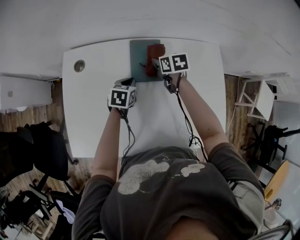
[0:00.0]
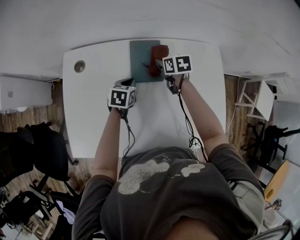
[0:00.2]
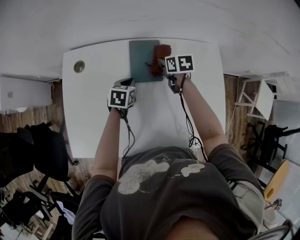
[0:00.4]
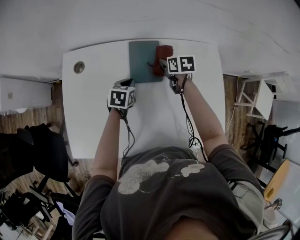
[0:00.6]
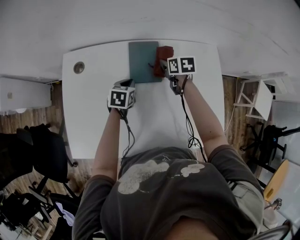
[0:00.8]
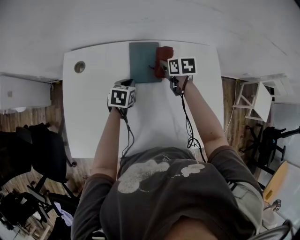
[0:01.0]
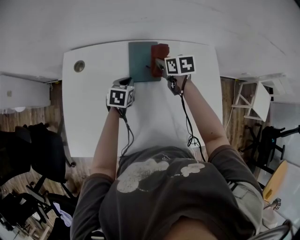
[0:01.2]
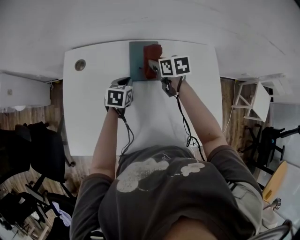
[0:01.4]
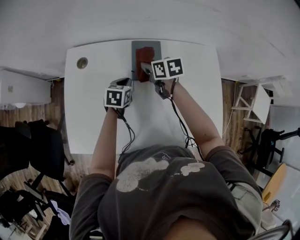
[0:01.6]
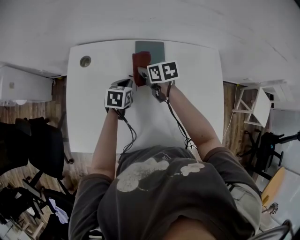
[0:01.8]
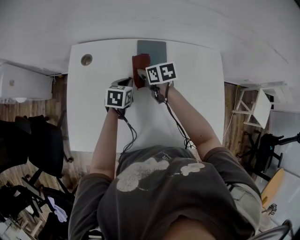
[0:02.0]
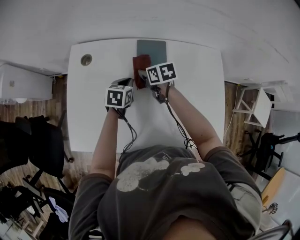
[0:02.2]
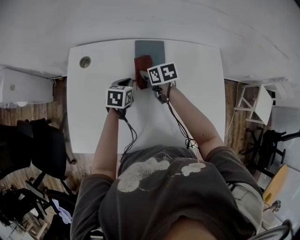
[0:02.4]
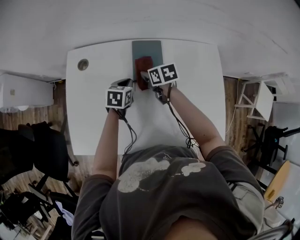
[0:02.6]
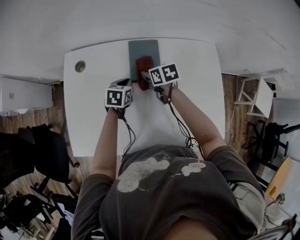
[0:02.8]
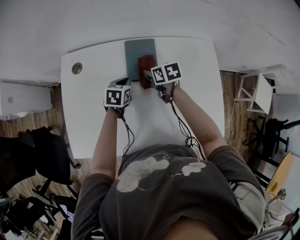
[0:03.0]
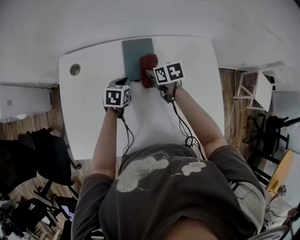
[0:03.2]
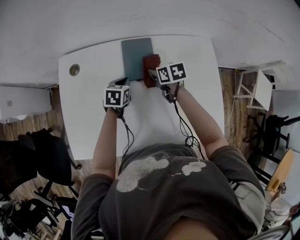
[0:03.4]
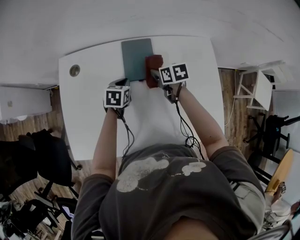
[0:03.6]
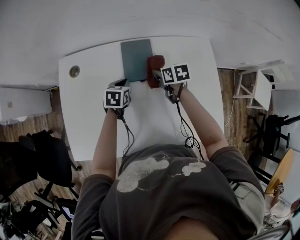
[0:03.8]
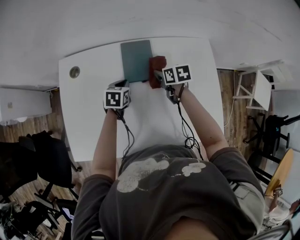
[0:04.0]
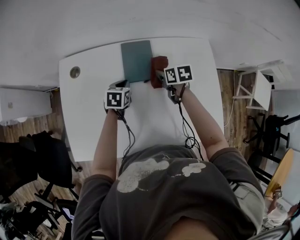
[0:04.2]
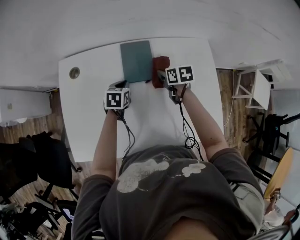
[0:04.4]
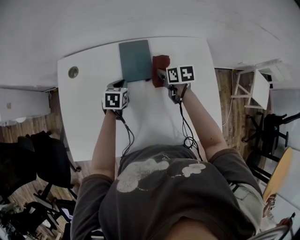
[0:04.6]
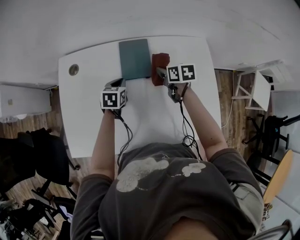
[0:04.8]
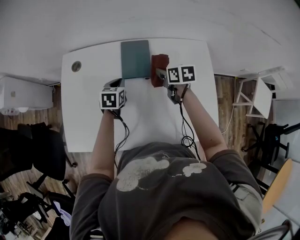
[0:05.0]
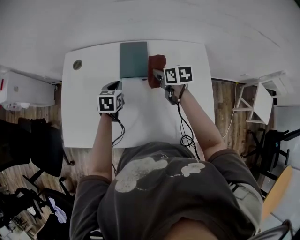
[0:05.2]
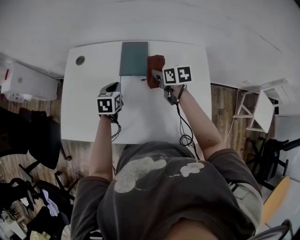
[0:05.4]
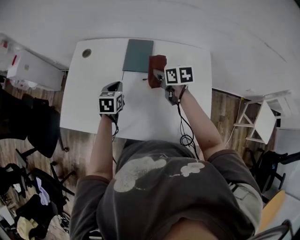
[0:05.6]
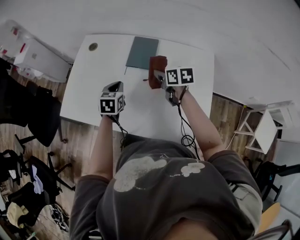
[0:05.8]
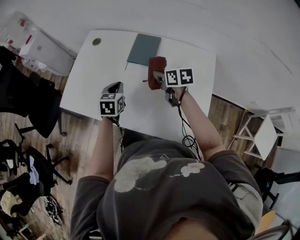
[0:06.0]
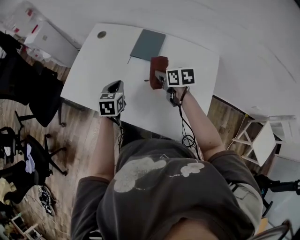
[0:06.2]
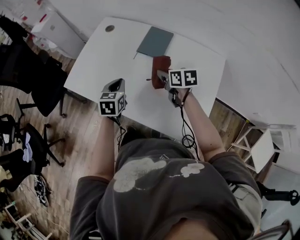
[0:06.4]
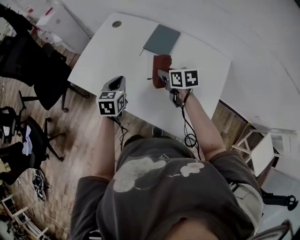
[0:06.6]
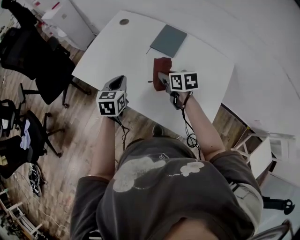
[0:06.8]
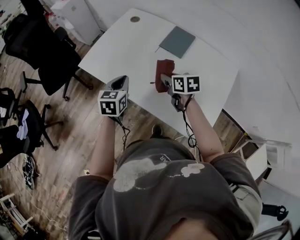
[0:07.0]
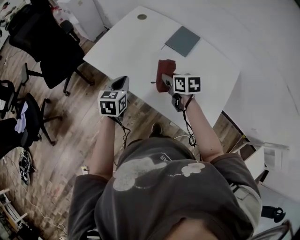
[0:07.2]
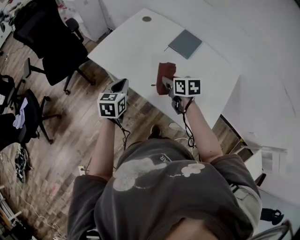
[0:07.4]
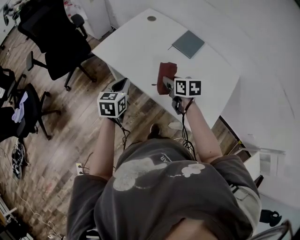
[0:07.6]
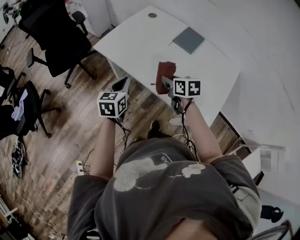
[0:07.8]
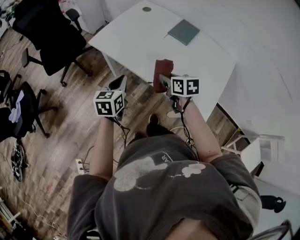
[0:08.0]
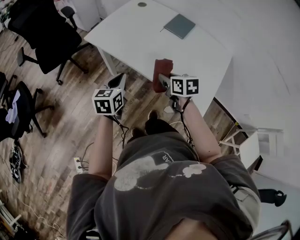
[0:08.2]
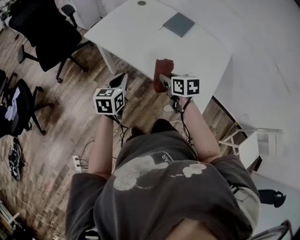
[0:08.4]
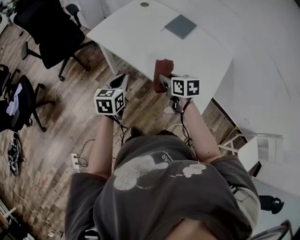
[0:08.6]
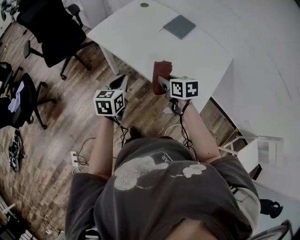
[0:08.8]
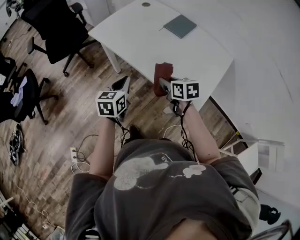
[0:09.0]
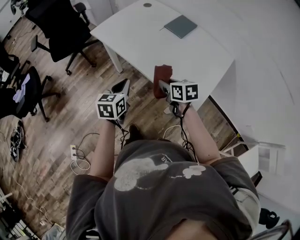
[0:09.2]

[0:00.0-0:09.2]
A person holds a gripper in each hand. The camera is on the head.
0:00.0 to 0:01.6: The right gripper heads to the left and upward, covering about 10 cm.
0:01.6 to 0:03.0: The right gripper travels downward by some 5 cm.
0:03.0 to 0:04.6: The right gripper heads to the right, covering approximately 10 cm.
0:04.6 to 0:06.2: The left gripper shifts by approximately 25 cm, and rotates approximately 30 degrees; the right gripper changes place by roughly 15 cm, and changes its angle by about 30 degrees.
0:06.2 to 0:07.6: Both grippers travel together to the left and backward, about 25 cm.
0:07.6 to 0:09.2: Both grippers travel together backward, some 15 cm.

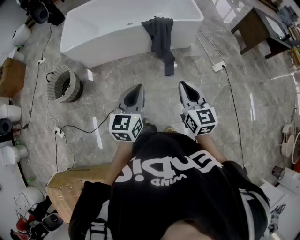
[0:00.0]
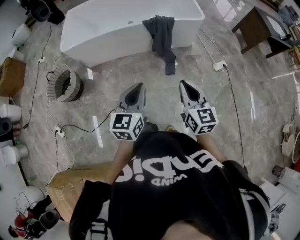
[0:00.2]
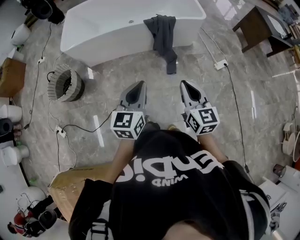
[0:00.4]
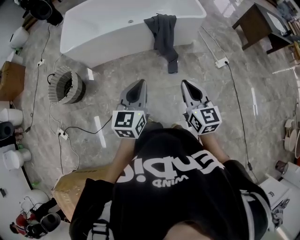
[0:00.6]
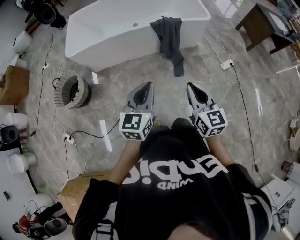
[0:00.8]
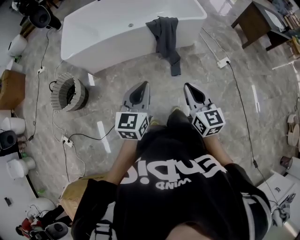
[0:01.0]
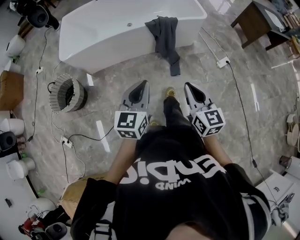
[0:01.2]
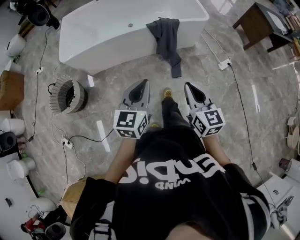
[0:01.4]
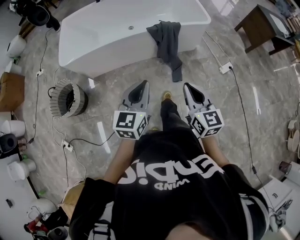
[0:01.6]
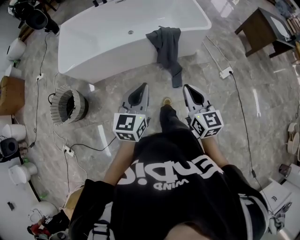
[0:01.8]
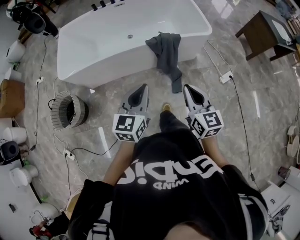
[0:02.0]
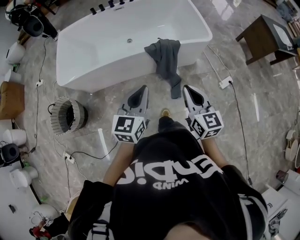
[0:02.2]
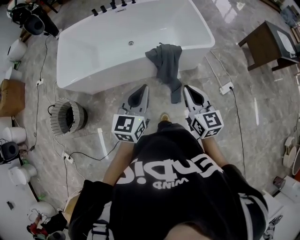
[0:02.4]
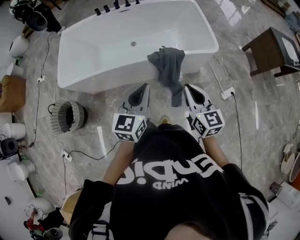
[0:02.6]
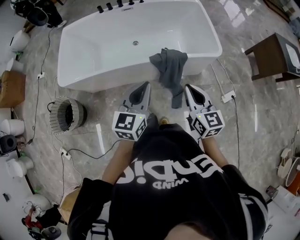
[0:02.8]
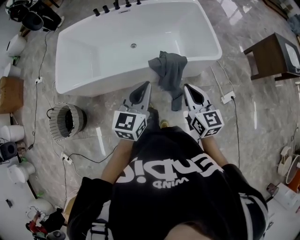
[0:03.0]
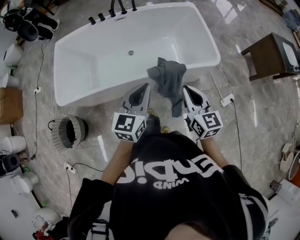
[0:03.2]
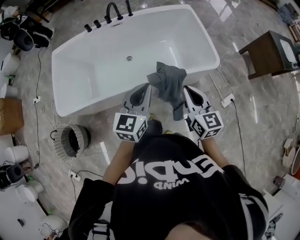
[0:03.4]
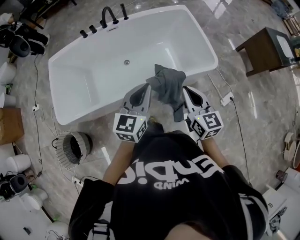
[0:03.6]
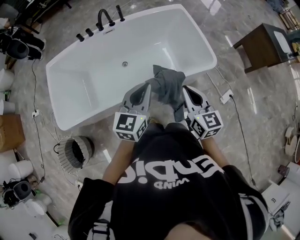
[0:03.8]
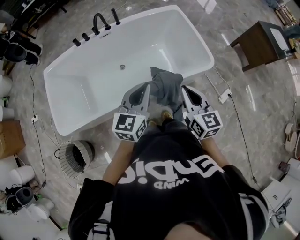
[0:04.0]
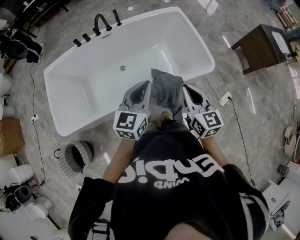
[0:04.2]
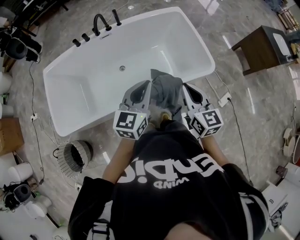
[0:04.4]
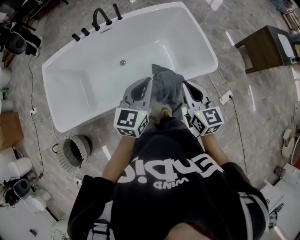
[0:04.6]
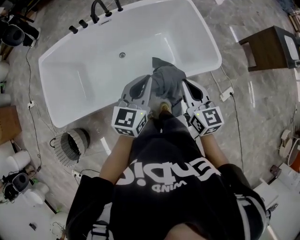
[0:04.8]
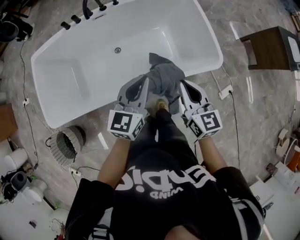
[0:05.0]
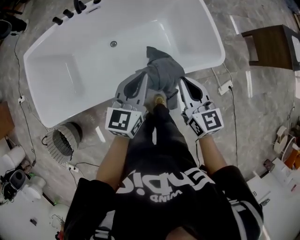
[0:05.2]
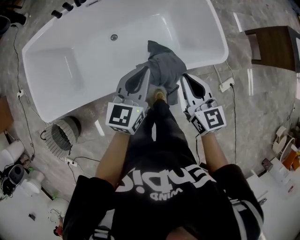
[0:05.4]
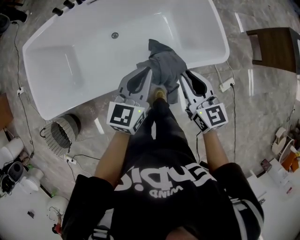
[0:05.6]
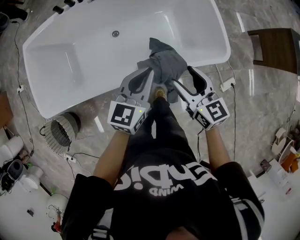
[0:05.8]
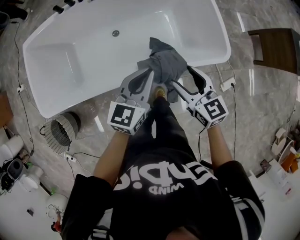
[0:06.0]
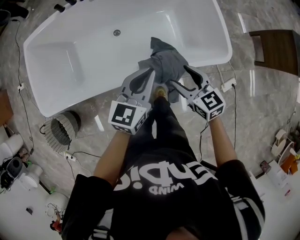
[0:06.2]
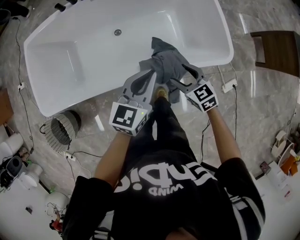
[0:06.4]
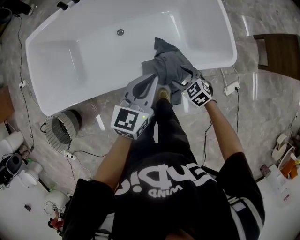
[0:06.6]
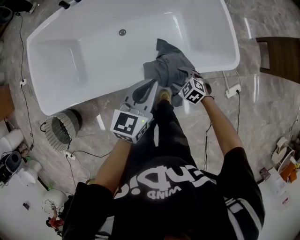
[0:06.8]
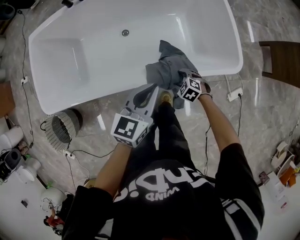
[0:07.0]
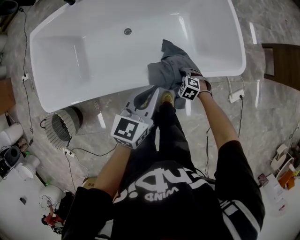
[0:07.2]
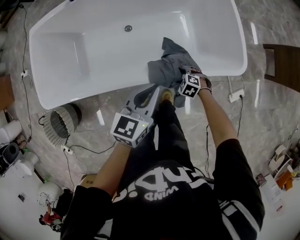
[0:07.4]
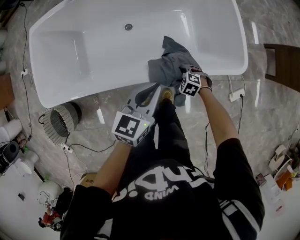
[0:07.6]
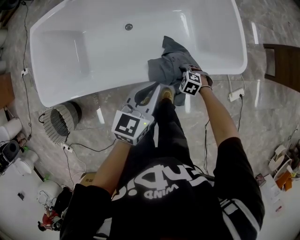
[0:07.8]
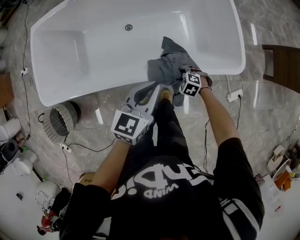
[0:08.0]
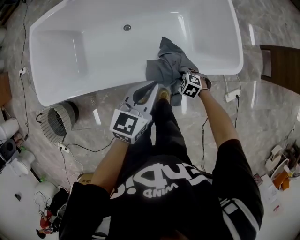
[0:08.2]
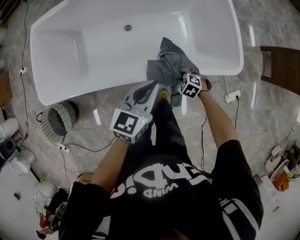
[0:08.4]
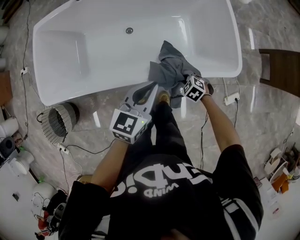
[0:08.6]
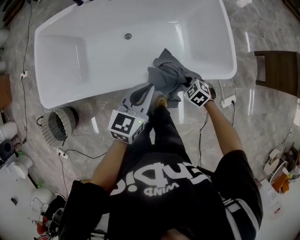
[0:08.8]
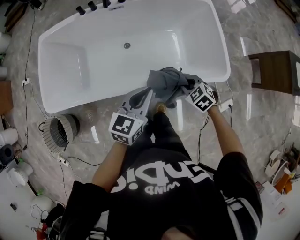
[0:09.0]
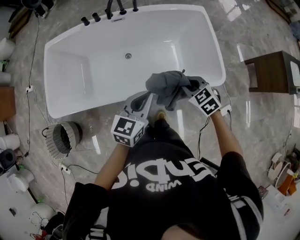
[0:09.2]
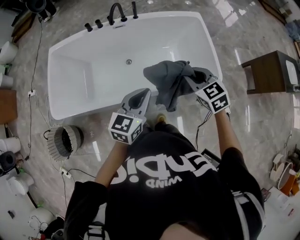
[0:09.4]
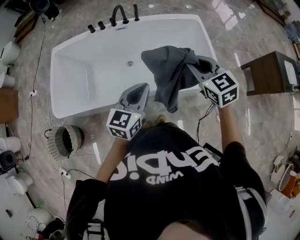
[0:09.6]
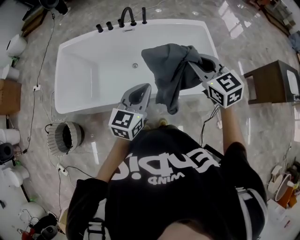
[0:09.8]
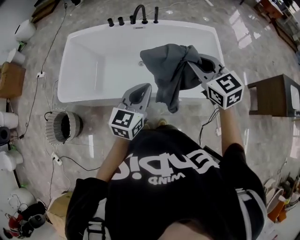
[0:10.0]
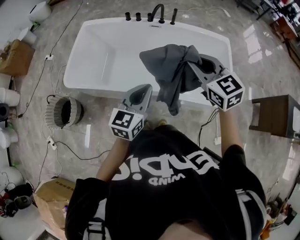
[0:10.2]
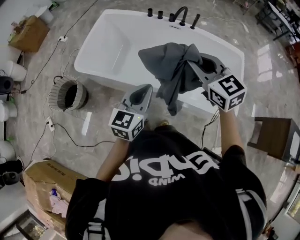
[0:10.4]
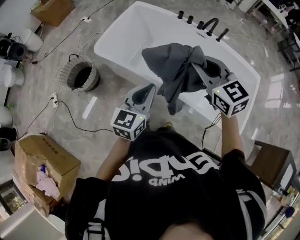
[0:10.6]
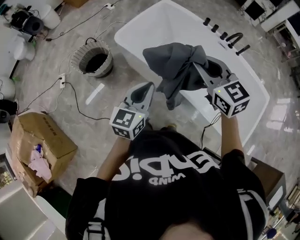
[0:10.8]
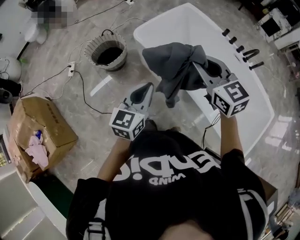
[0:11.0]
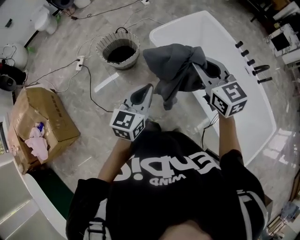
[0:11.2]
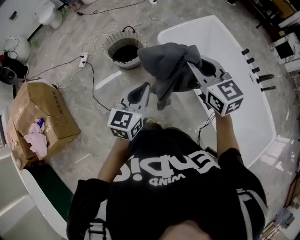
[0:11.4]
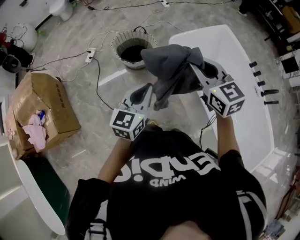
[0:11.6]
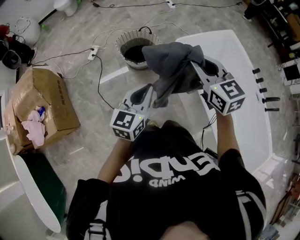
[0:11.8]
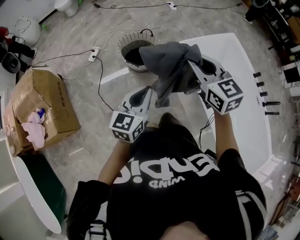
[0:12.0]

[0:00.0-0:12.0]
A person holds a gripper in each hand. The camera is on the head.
0:00.0 to 0:01.6: The grippers both shift forward and to the left by approximately 15 cm.
0:01.6 to 0:03.0: The grippers both shift forward by approximately 35 cm.
0:03.0 to 0:04.4: The grippers both shift forward by about 20 cm.
0:04.4 to 0:06.0: The two grippers go about 15 cm downward and forward. The right gripper changes its angle by roughly 20 degrees, and opens.
0:06.0 to 0:07.6: The right gripper heads downward, covering about 35 cm, and tips its fingers downward by approximately 50 degrees, while the left gripper travels downward by approximately 5 cm.
0:07.6 to 0:09.0: The right gripper is displaced upward by roughly 20 cm, rotates approximately 20 degrees, and closes; the left gripper moves upward, approximately 10 cm.
0:09.0 to 0:10.4: The right gripper goes roughly 35 cm upward, and tips its fingers upward by about 40 degrees; the left gripper shifts by some 20 cm, and changes its angle by about 30 degrees.
0:10.4 to 0:12.0: The pair of grippers is taken about 50 cm. The right gripper changes its angle by approximately 40 degrees; the left gripper rotates some 50 degrees.

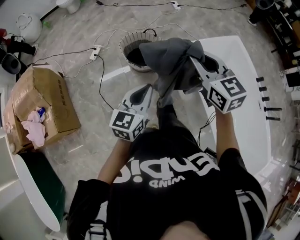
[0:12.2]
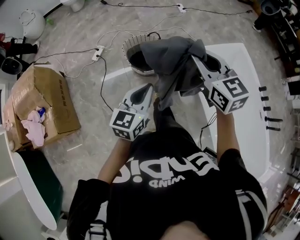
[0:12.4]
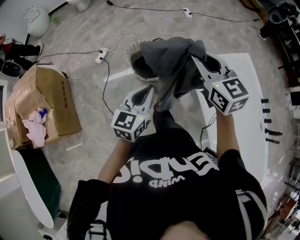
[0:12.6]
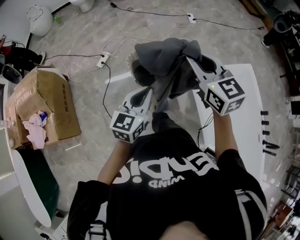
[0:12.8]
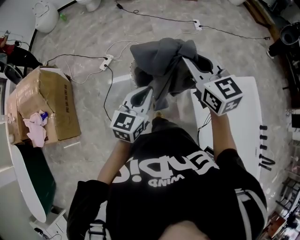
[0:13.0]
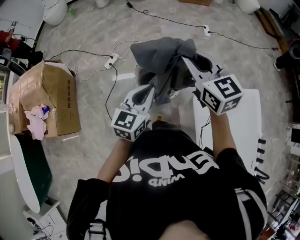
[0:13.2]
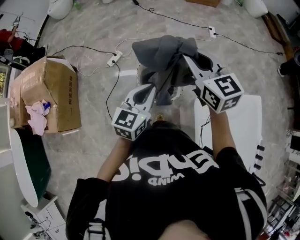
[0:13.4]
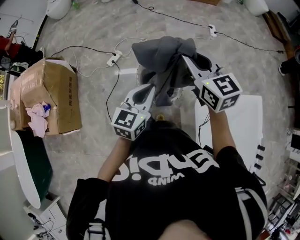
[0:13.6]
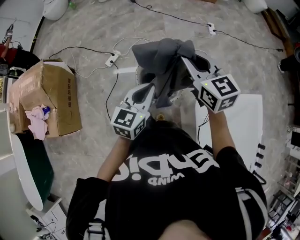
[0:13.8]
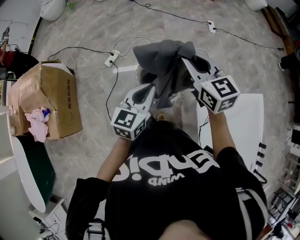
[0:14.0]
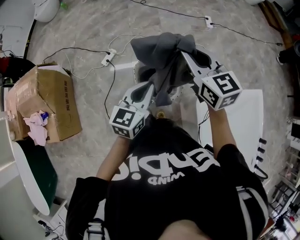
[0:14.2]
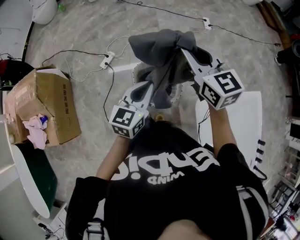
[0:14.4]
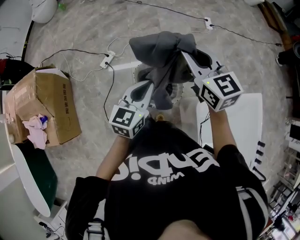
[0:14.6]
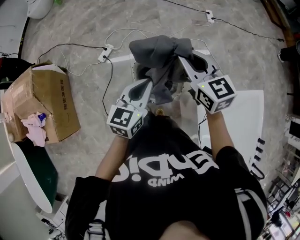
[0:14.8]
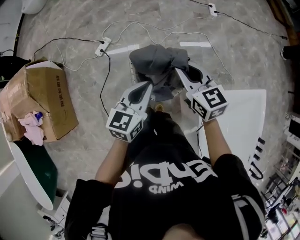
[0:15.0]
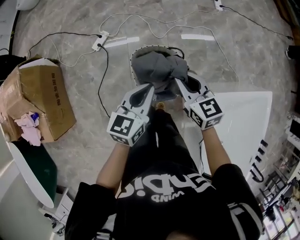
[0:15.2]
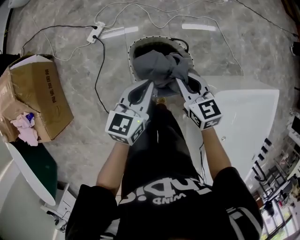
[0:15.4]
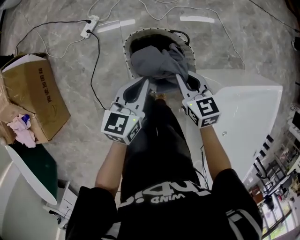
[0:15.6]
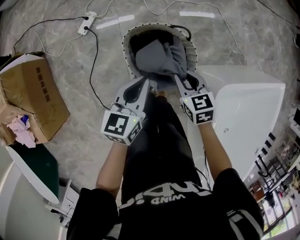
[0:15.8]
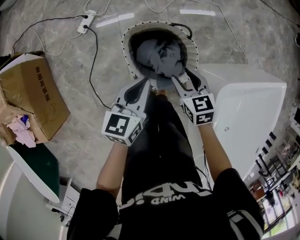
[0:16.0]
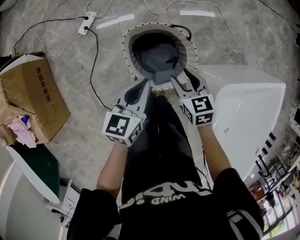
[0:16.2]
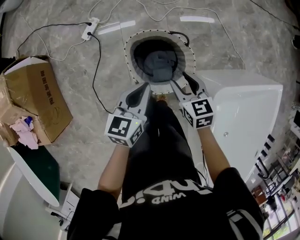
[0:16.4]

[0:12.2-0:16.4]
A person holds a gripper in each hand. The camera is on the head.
0:12.2 to 0:13.6: Both grippers travel together forward, roughly 35 cm.
0:13.6 to 0:15.0: The left gripper travels forward and downward by about 15 cm, while the right gripper goes roughly 20 cm downward and forward.
0:15.0 to 0:16.4: The two grippers go about 25 cm downward. The right gripper changes its angle by approximately 20 degrees, and opens its fingers.
